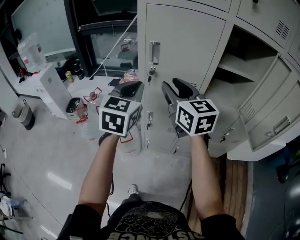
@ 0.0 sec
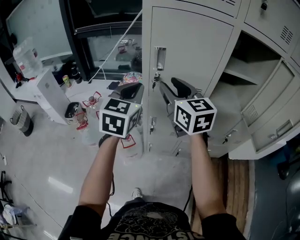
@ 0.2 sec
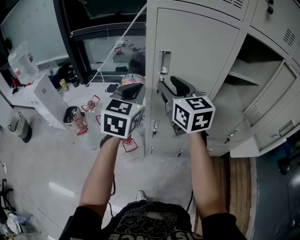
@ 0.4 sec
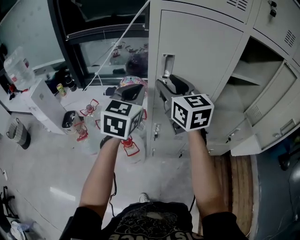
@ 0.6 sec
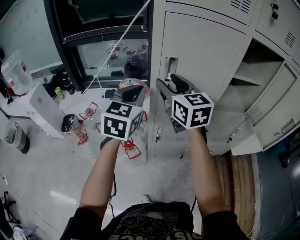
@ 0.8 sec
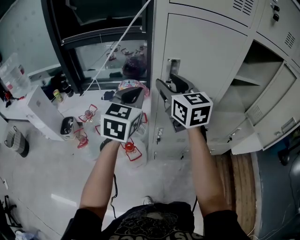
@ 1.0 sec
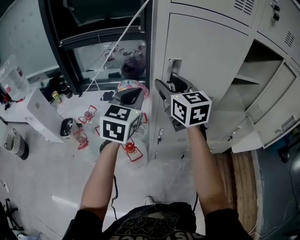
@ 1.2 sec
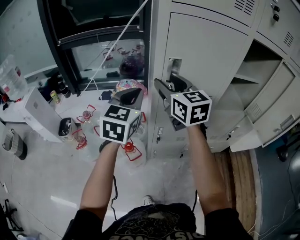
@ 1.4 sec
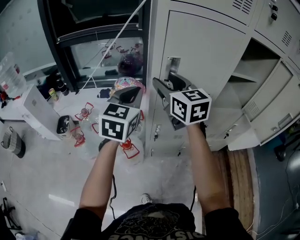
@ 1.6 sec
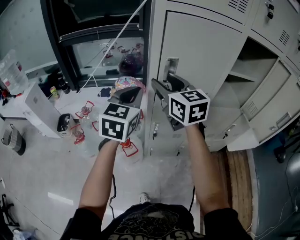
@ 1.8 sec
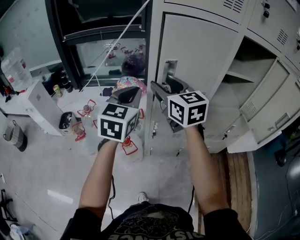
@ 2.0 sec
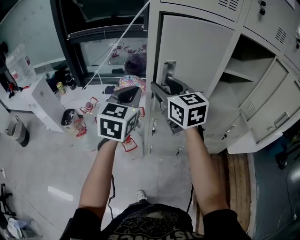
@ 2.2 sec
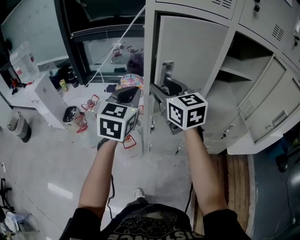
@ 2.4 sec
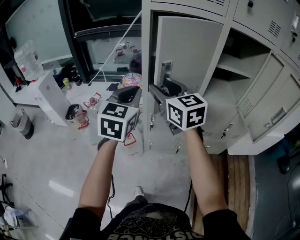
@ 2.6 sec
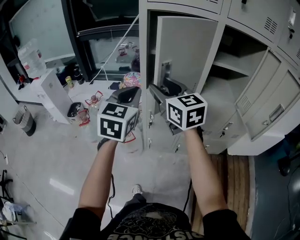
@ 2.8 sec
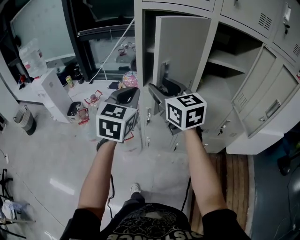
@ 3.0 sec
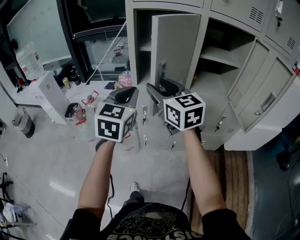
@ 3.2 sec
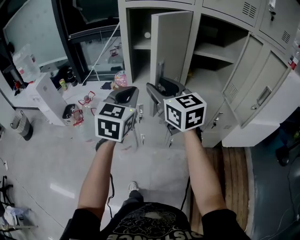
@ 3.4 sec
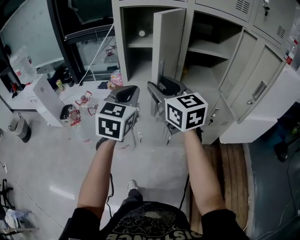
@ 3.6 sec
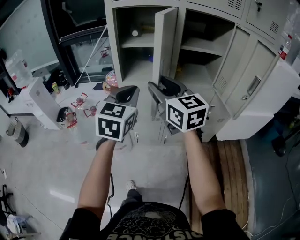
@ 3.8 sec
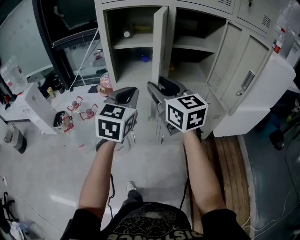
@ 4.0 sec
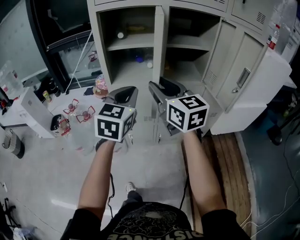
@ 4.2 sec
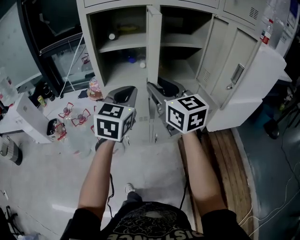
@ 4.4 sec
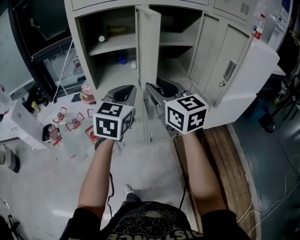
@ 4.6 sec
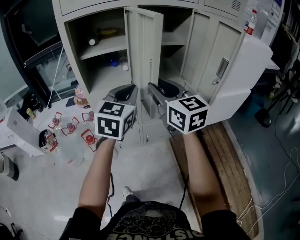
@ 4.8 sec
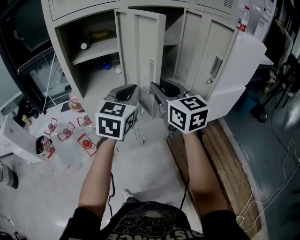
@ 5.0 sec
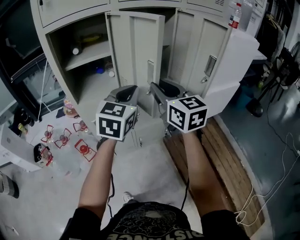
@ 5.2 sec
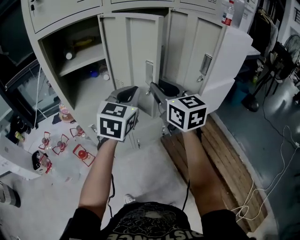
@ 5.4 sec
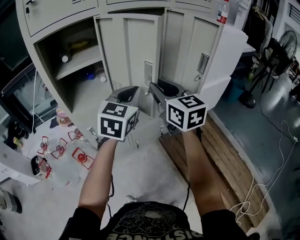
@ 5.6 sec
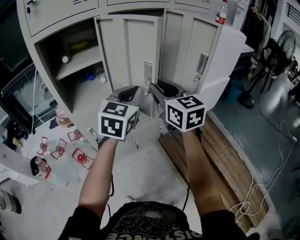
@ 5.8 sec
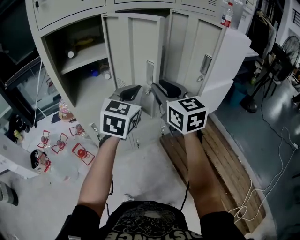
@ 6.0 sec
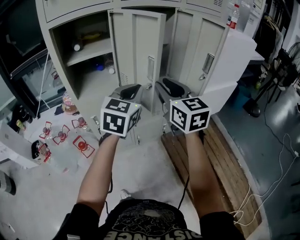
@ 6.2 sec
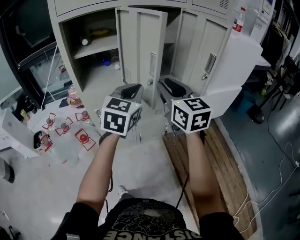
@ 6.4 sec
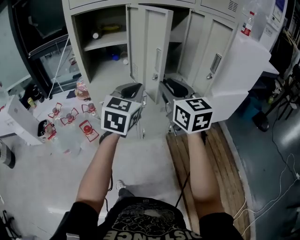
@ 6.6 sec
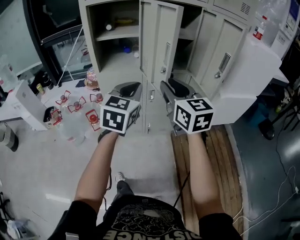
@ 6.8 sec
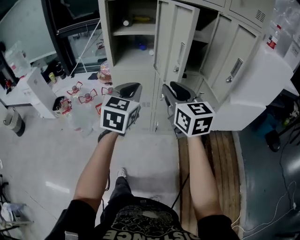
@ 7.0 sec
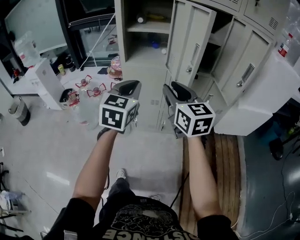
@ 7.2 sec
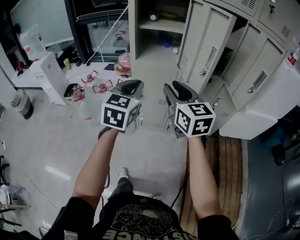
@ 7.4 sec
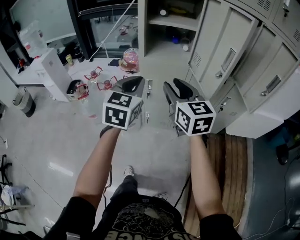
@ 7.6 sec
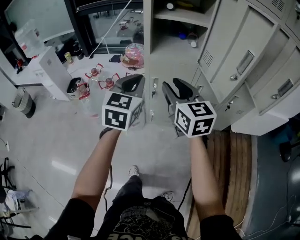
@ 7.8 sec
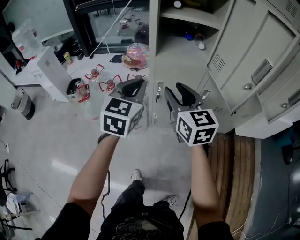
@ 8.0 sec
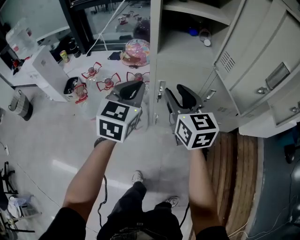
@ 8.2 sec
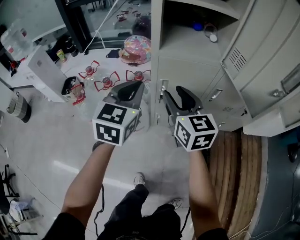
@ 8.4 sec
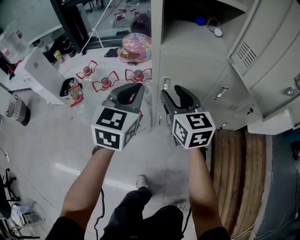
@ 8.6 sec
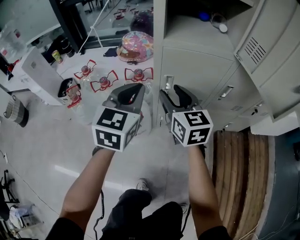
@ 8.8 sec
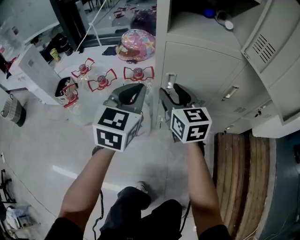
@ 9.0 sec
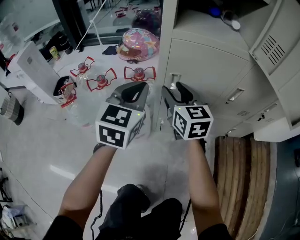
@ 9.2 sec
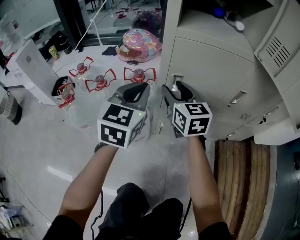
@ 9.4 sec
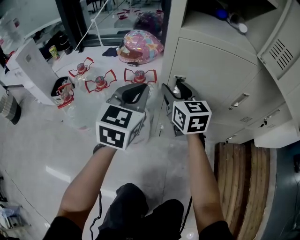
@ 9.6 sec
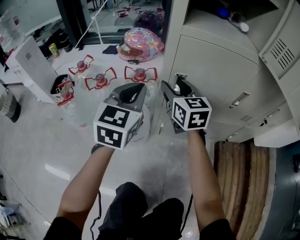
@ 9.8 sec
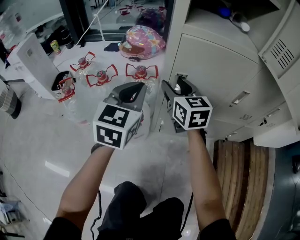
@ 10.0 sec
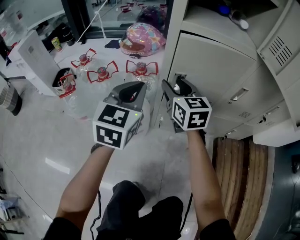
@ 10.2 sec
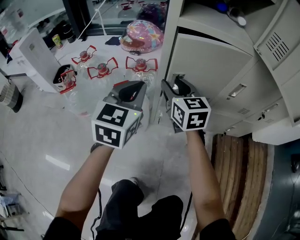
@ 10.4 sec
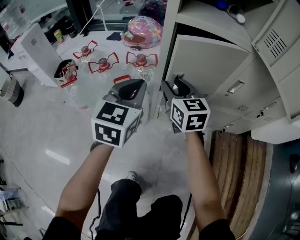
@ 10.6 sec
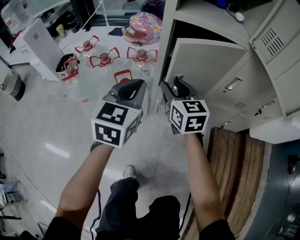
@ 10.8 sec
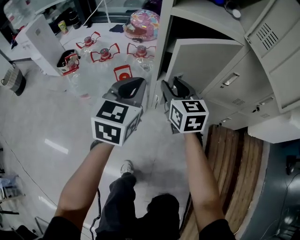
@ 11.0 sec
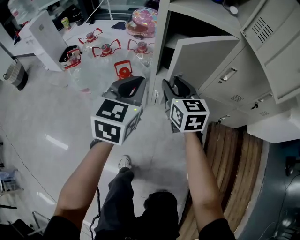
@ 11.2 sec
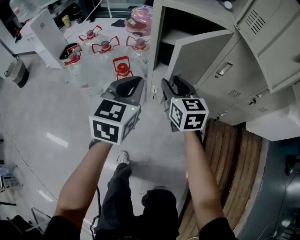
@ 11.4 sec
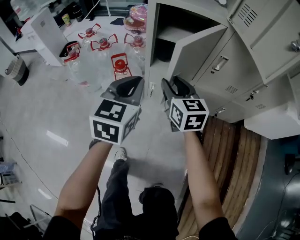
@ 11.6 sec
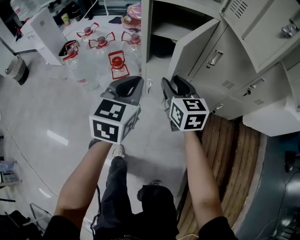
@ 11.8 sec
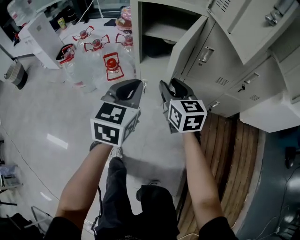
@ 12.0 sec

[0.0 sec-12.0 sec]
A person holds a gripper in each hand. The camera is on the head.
0.0 sec to 1.6 sec: The two grippers go approximately 15 cm forward and to the left.
1.6 sec to 3.0 sec: The left gripper moves backward and to the right, approximately 15 cm. Meanwhile the right gripper is displaced backward by some 15 cm.
3.0 sec to 4.4 sec: The left gripper shifts approximately 15 cm to the right. Meanwhile the right gripper is displaced to the right and backward by roughly 15 cm.
4.4 sec to 6.0 sec: Both grippers travel together to the right, approximately 10 cm. The left gripper turns by approximately 20 degrees. Meanwhile the right gripper changes its angle by about 20 degrees.
6.0 sec to 7.6 sec: The right gripper changes place by approximately 25 cm, and turns by about 30 degrees, while the left gripper changes place by approximately 25 cm, and turns by approximately 40 degrees.
7.6 sec to 9.0 sec: The grippers both shift downward and forward by roughly 30 cm.
9.0 sec to 10.4 sec: The right gripper shifts roughly 5 cm downward, while the left gripper moves about 5 cm.
10.4 sec to 12.0 sec: Both grippers move backward and to the right, about 20 cm.

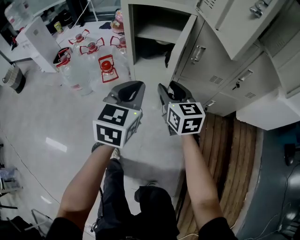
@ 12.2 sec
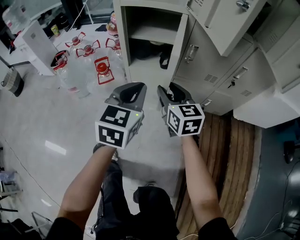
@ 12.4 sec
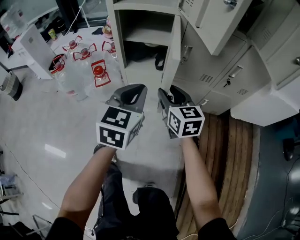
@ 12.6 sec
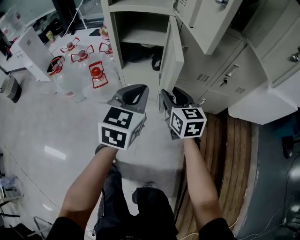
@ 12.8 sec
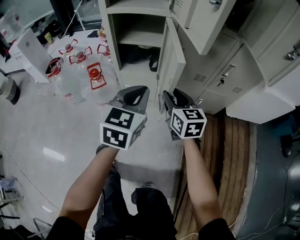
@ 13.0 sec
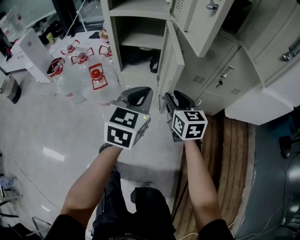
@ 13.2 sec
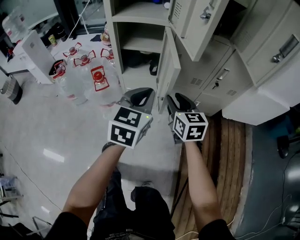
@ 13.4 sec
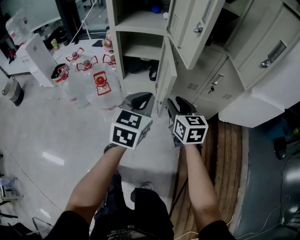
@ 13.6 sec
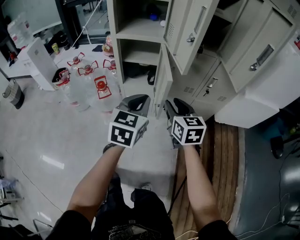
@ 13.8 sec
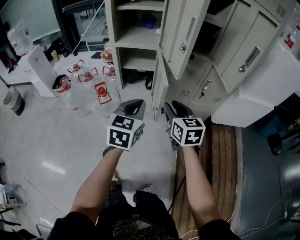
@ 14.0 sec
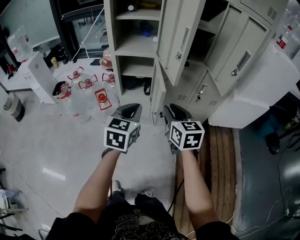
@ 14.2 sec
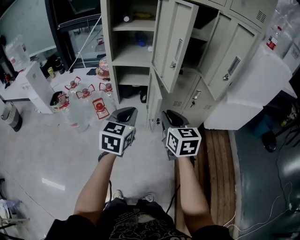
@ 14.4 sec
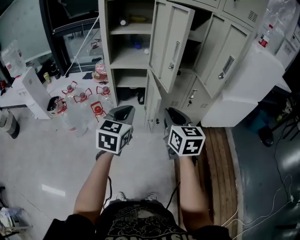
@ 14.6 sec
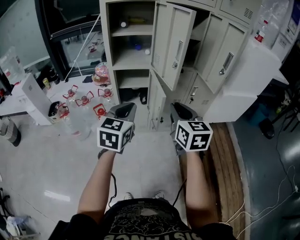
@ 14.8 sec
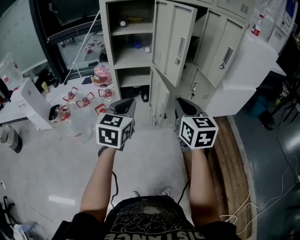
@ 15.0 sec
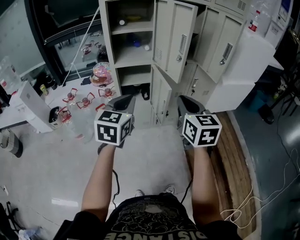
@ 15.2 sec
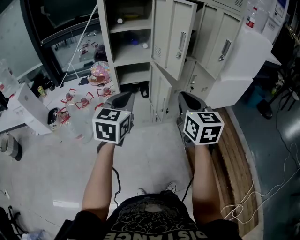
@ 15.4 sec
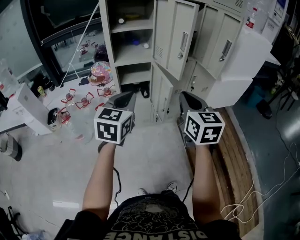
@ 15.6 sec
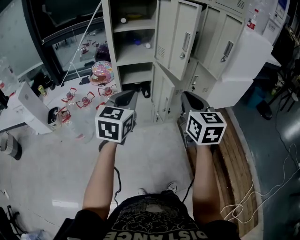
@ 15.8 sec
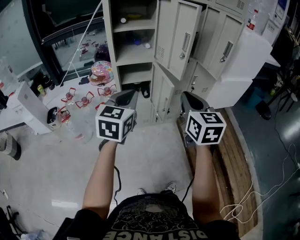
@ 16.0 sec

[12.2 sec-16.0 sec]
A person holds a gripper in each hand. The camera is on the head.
12.2 sec to 13.4 sec: The right gripper is displaced to the right by roughly 10 cm. The left gripper moves to the right and upward, some 10 cm.
13.4 sec to 14.8 sec: The left gripper goes about 20 cm upward, to the left and backward, while the right gripper shifts roughly 30 cm upward and backward.
14.8 sec to 16.0 sec: The right gripper ends up roughly 5 cm from where it was; the left gripper travels to the left by roughly 5 cm.

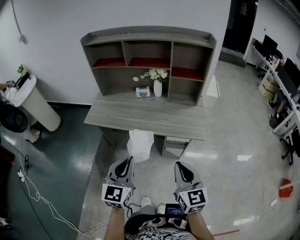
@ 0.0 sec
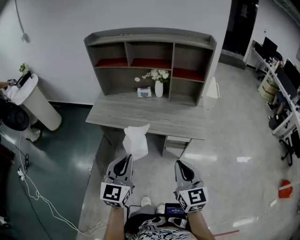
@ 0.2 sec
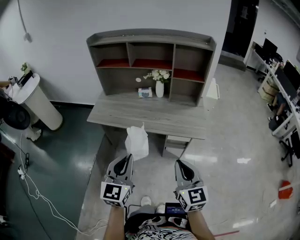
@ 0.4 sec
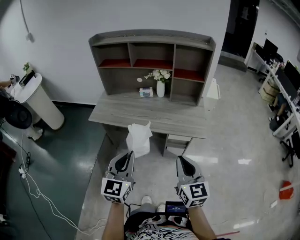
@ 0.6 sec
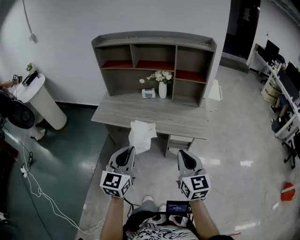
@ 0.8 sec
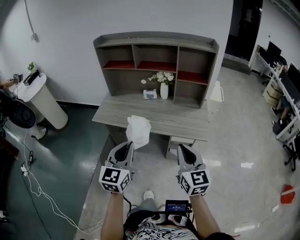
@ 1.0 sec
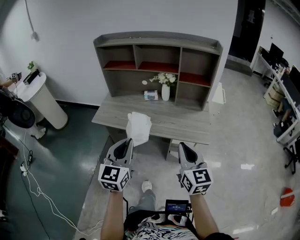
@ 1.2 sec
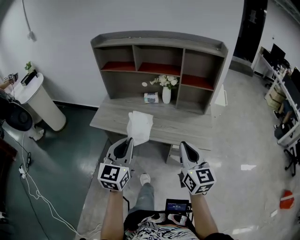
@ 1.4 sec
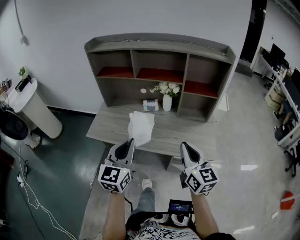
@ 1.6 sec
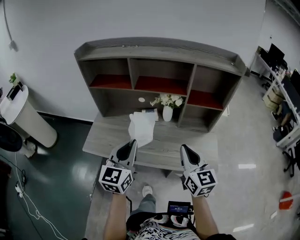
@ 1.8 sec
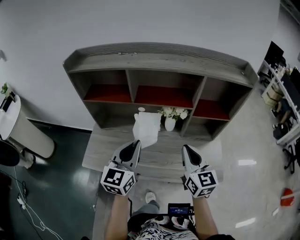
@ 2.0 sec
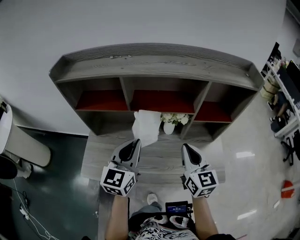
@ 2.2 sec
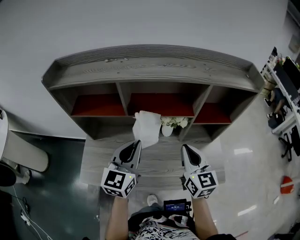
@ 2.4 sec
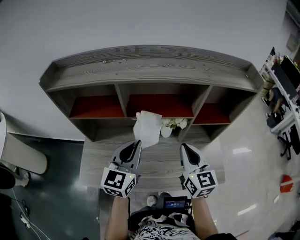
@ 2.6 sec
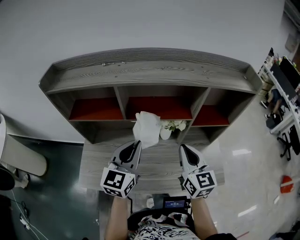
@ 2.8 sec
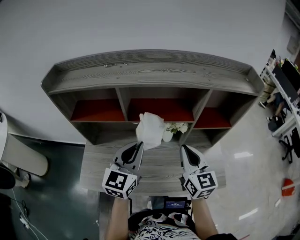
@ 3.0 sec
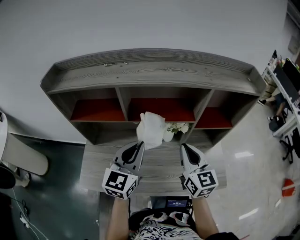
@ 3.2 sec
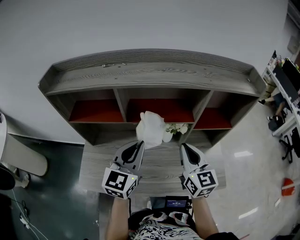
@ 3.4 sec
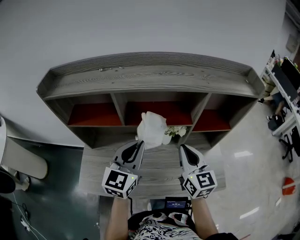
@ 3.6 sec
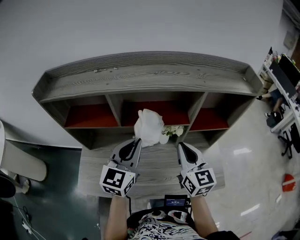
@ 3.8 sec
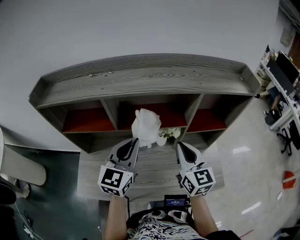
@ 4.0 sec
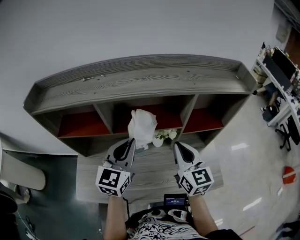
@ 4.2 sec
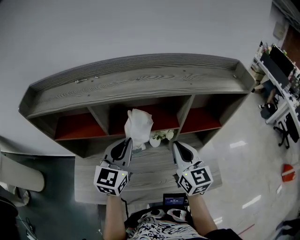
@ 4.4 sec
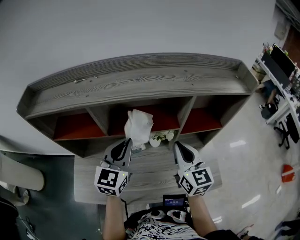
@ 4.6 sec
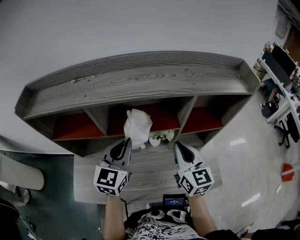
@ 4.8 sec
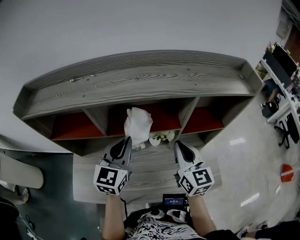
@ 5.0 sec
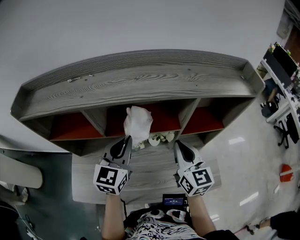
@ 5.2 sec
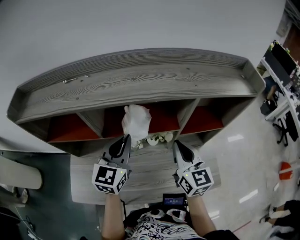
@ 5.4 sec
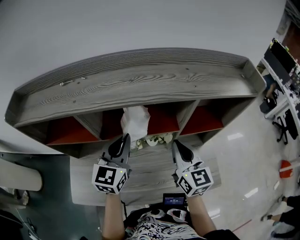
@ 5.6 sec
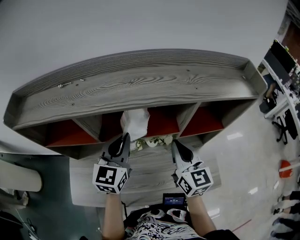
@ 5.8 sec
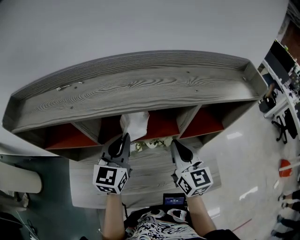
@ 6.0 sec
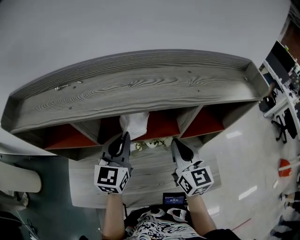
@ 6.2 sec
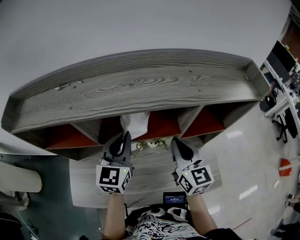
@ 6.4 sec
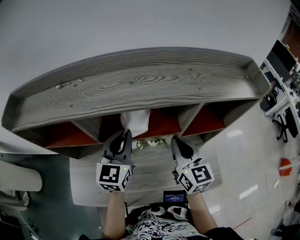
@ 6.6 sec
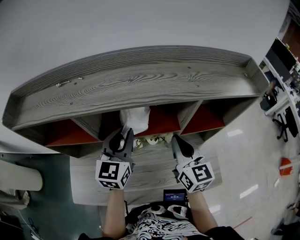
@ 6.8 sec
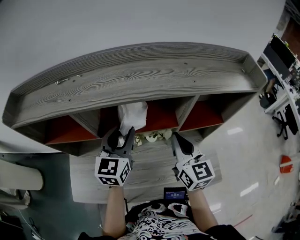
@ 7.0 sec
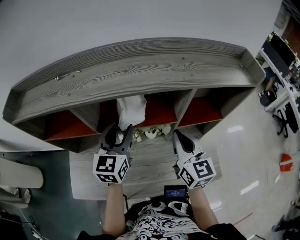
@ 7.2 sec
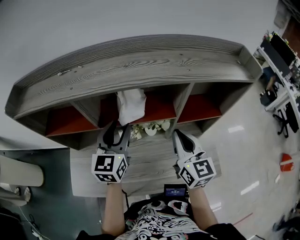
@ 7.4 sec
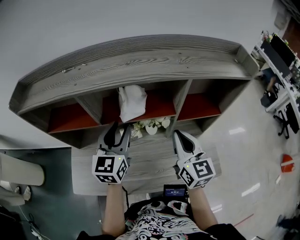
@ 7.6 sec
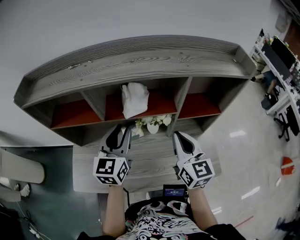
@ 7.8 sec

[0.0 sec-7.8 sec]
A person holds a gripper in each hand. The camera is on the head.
0.0 sec to 1.6 sec: Both grippers travel together forward, roughly 15 cm.
1.6 sec to 3.2 sec: The grippers both shift forward by roughly 15 cm.
3.2 sec to 4.6 sec: The right gripper shifts by some 5 cm, while the left gripper is displaced forward by roughly 5 cm.
4.6 sec to 6.2 sec: The left gripper goes roughly 5 cm forward.
6.2 sec to 7.8 sec: Both grippers move backward, approximately 5 cm. The left gripper opens its fingers.
